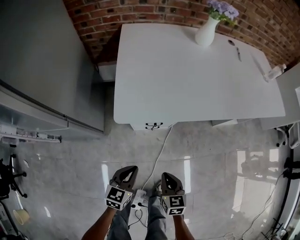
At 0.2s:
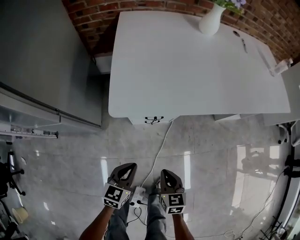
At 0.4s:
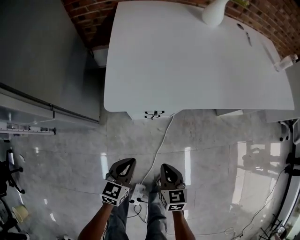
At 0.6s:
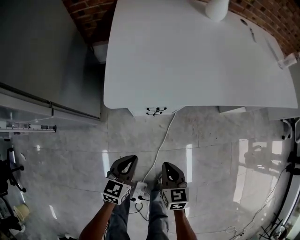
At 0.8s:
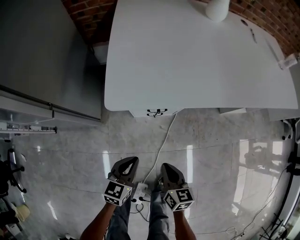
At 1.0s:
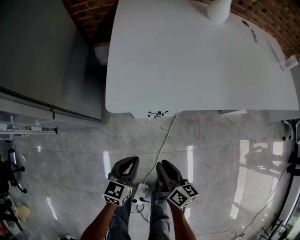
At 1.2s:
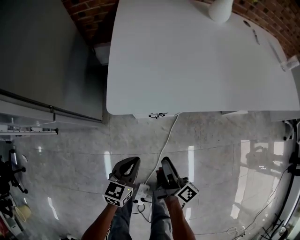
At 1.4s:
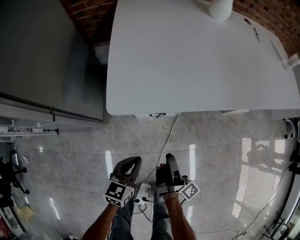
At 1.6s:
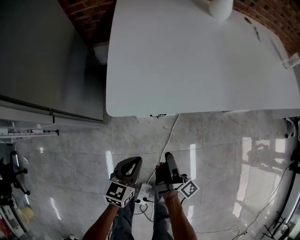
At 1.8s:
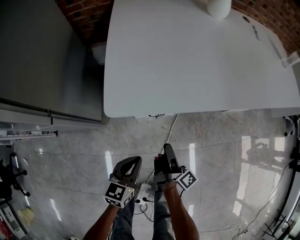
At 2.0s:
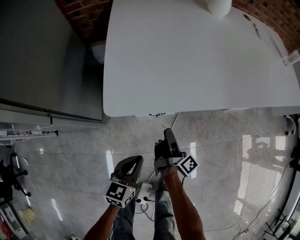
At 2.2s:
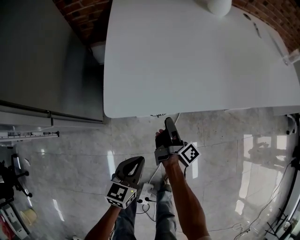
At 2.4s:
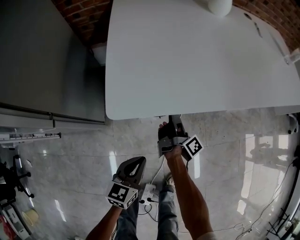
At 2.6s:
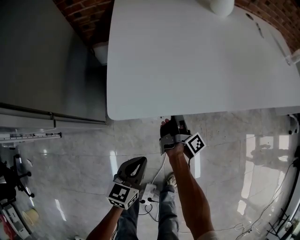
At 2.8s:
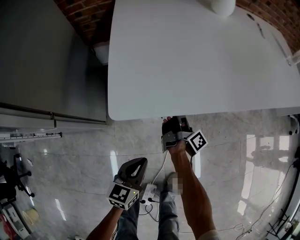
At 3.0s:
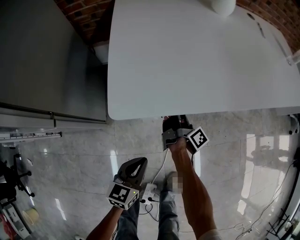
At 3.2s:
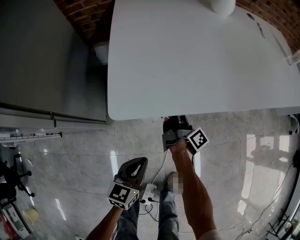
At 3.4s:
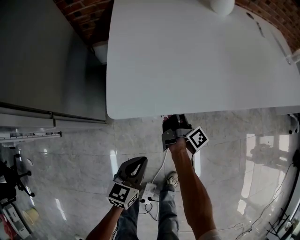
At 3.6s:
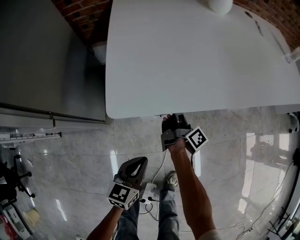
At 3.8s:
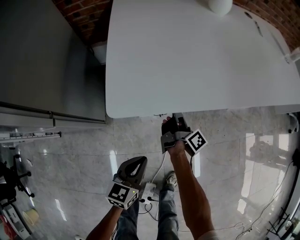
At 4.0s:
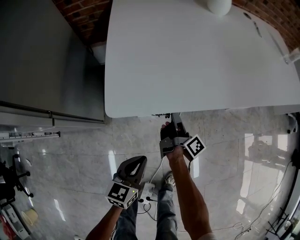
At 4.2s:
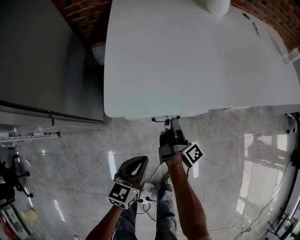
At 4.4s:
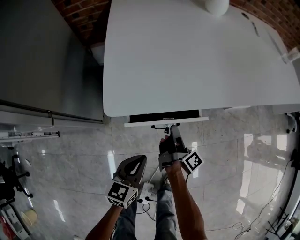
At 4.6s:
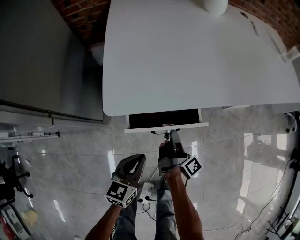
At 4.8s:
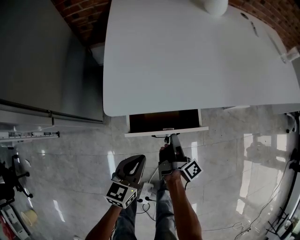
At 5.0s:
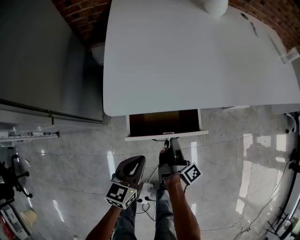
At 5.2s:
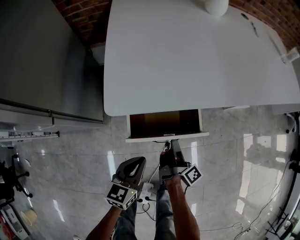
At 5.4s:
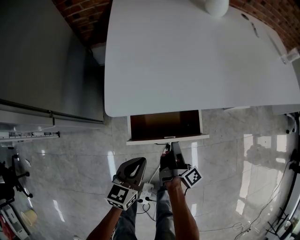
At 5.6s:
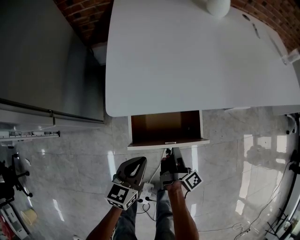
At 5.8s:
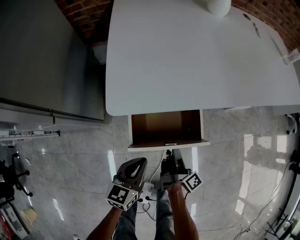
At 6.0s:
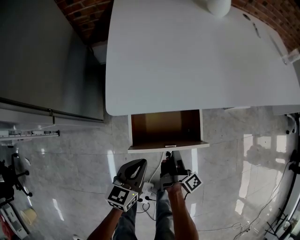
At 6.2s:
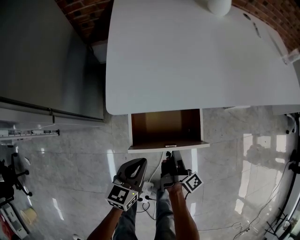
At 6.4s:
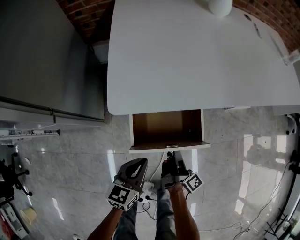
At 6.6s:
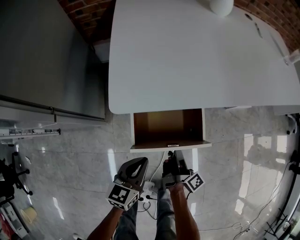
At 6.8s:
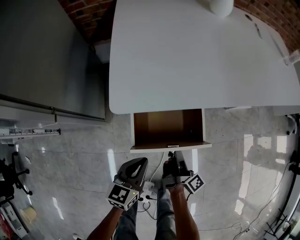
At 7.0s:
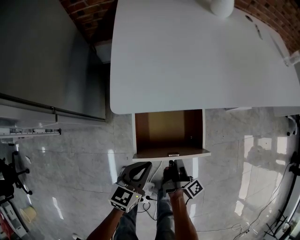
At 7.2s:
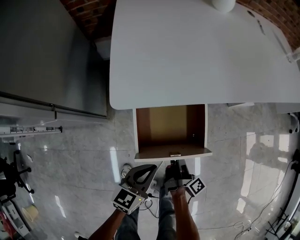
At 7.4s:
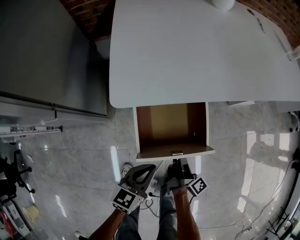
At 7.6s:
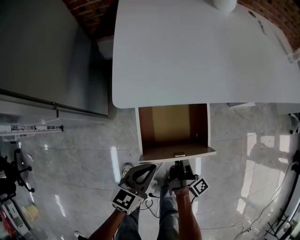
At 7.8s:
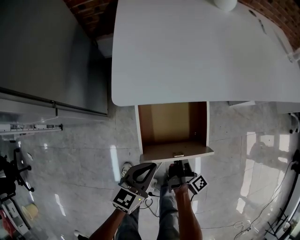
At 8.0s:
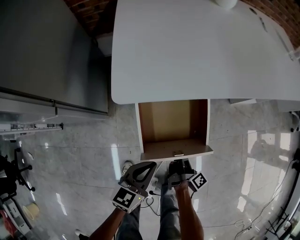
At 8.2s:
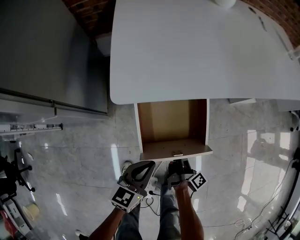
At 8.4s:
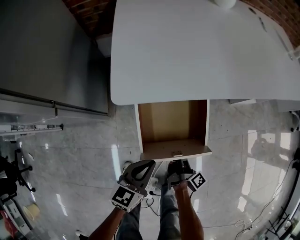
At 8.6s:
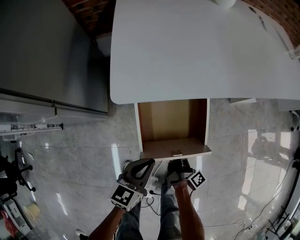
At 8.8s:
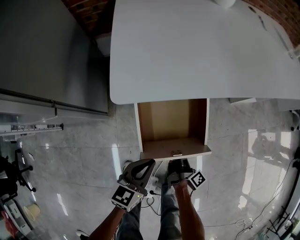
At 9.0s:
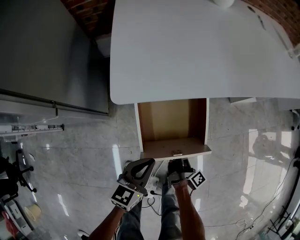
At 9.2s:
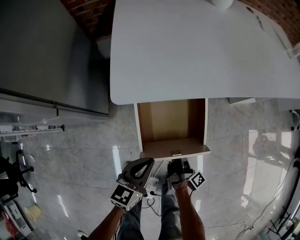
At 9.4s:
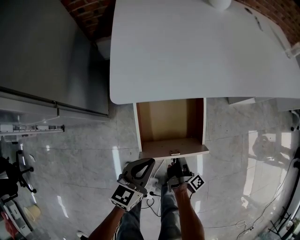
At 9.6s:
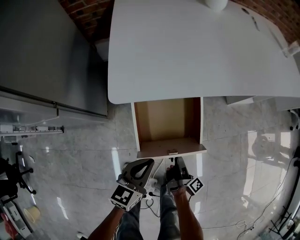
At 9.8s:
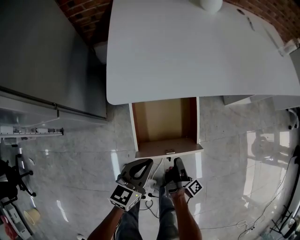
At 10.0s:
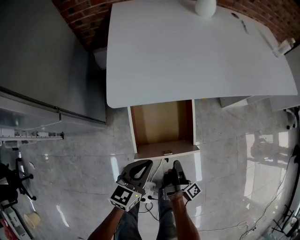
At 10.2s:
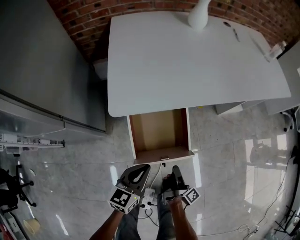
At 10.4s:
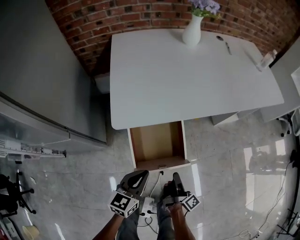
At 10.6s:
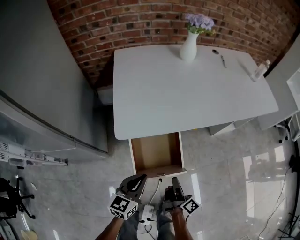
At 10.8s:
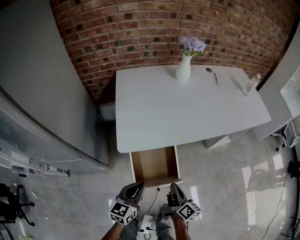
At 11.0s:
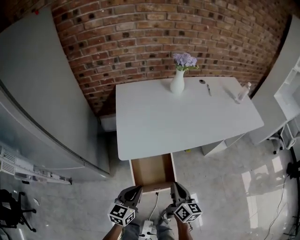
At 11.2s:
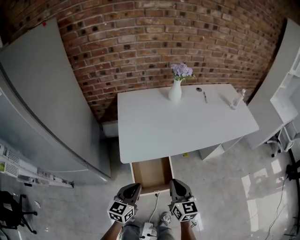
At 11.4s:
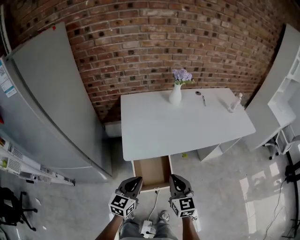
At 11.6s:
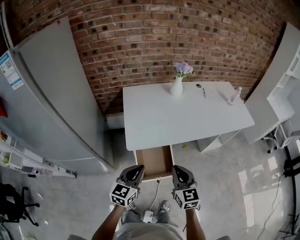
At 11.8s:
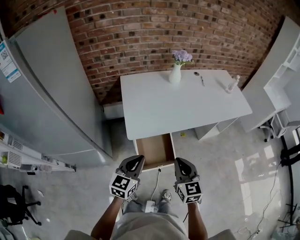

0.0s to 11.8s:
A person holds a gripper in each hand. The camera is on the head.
0.0s to 1.4s: The left gripper moves downward, approximately 5 cm. The right gripper goes roughly 5 cm forward, twists about 80 degrees clockwise, seen from behind, and opens.
1.4s to 3.0s: The right gripper shifts about 20 cm forward, and closes its fingers.
3.0s to 4.4s: The right gripper shifts about 10 cm backward.
4.4s to 6.0s: The right gripper heads backward, covering some 10 cm.
6.0s to 7.4s: The right gripper ends up some 5 cm from where it was.
7.4s to 8.8s: The grippers make only small movements.
8.8s to 10.4s: The right gripper is displaced upward by about 15 cm, and opens, then closes again. Meanwhile the left gripper heads upward, covering some 10 cm.
10.4s to 11.8s: The grippers both shift upward by about 30 cm. The right gripper rotates around the line of its fingers by about 90 degrees, counterclockwise from behind.

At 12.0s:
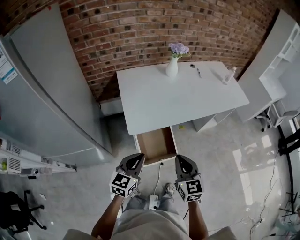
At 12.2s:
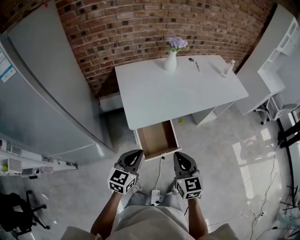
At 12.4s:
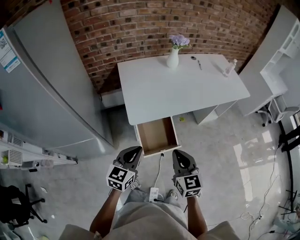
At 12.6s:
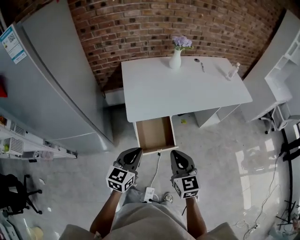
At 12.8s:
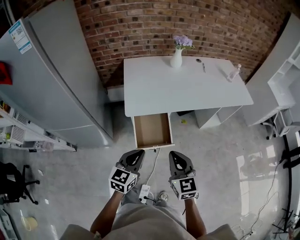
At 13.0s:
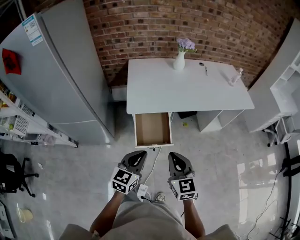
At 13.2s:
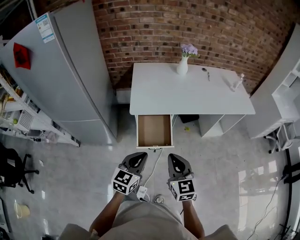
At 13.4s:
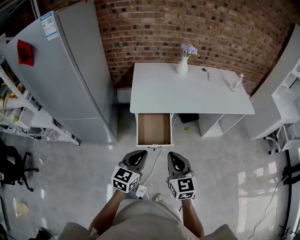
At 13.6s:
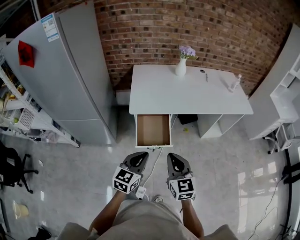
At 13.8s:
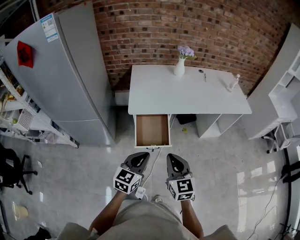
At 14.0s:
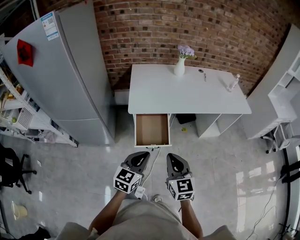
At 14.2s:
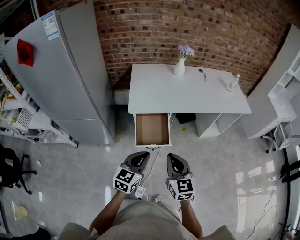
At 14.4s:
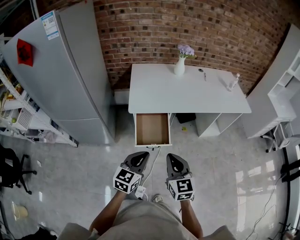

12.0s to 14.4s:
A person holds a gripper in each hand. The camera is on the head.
12.0s to 13.2s: The grippers both shift backward and to the right by roughly 15 cm.
13.2s to 14.4s: The grippers make only small movements.

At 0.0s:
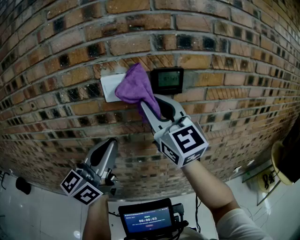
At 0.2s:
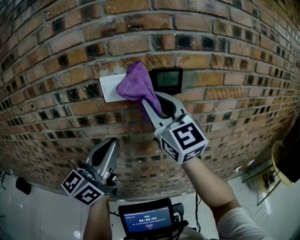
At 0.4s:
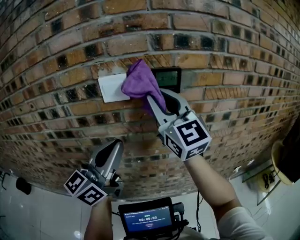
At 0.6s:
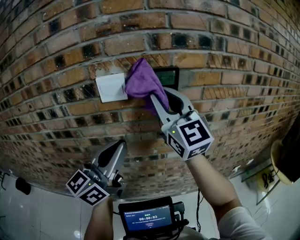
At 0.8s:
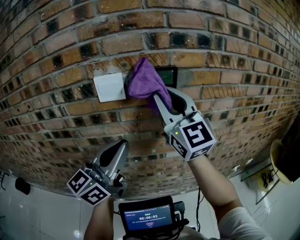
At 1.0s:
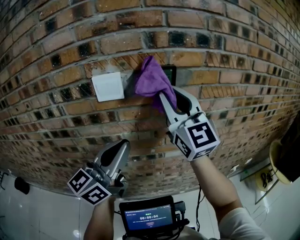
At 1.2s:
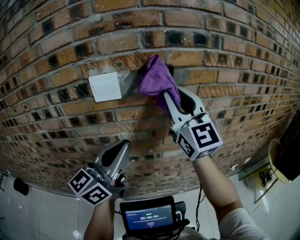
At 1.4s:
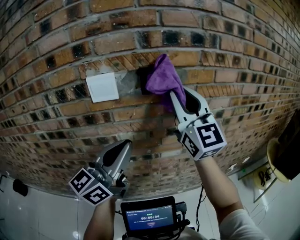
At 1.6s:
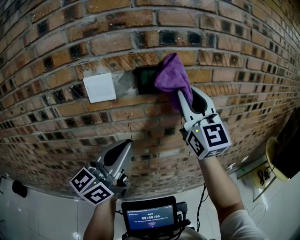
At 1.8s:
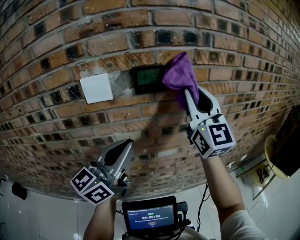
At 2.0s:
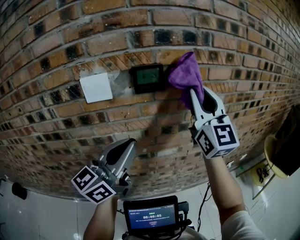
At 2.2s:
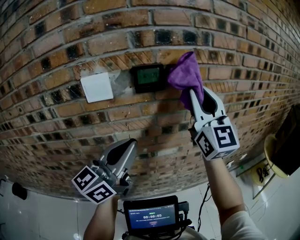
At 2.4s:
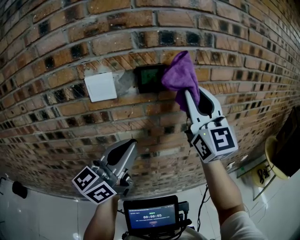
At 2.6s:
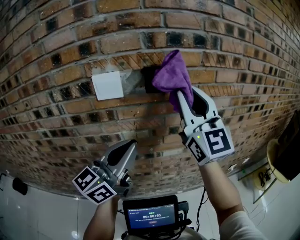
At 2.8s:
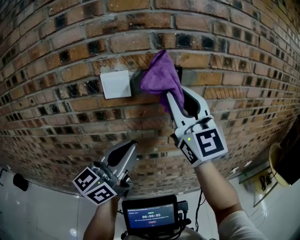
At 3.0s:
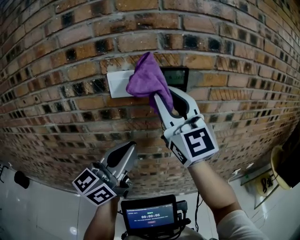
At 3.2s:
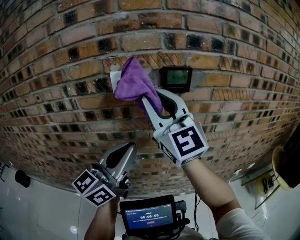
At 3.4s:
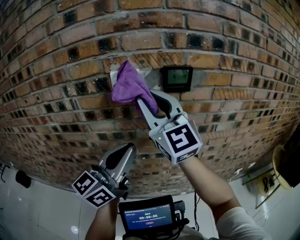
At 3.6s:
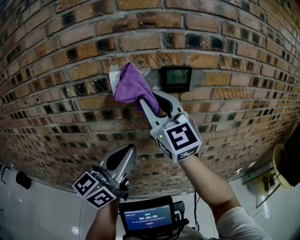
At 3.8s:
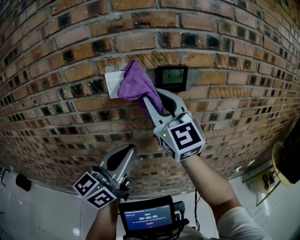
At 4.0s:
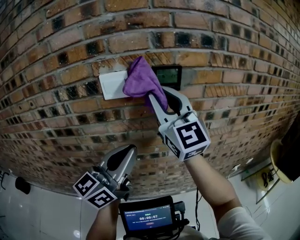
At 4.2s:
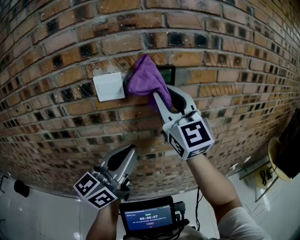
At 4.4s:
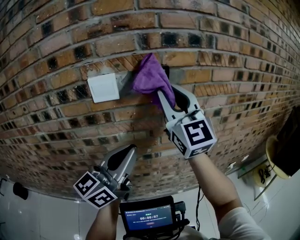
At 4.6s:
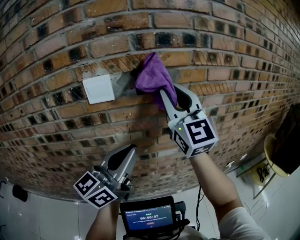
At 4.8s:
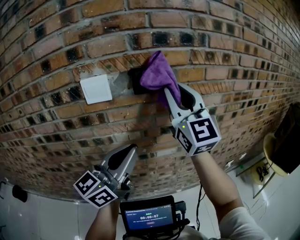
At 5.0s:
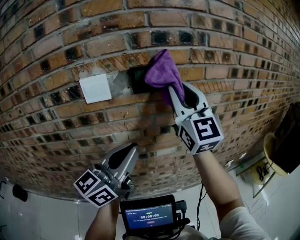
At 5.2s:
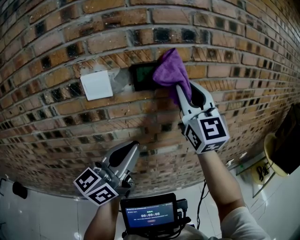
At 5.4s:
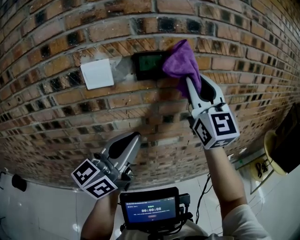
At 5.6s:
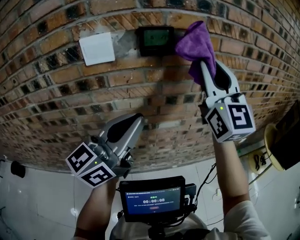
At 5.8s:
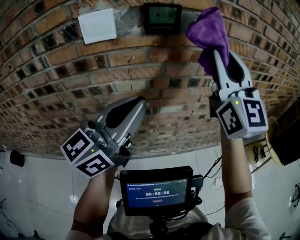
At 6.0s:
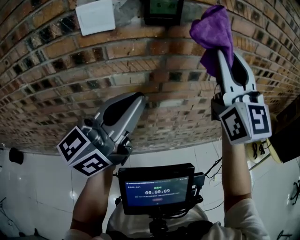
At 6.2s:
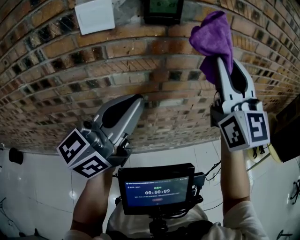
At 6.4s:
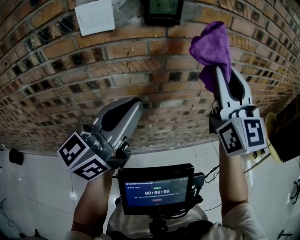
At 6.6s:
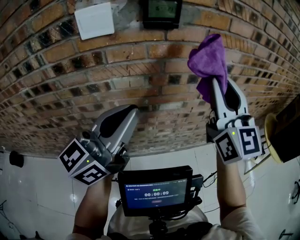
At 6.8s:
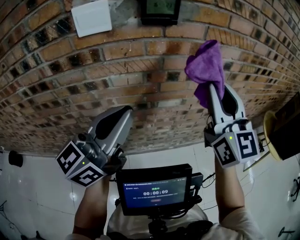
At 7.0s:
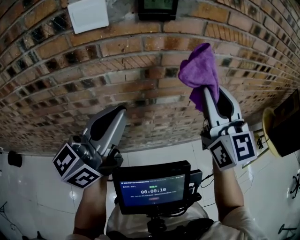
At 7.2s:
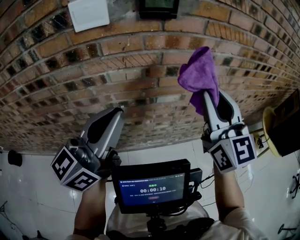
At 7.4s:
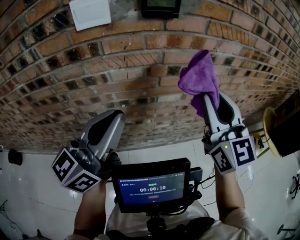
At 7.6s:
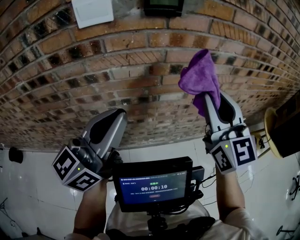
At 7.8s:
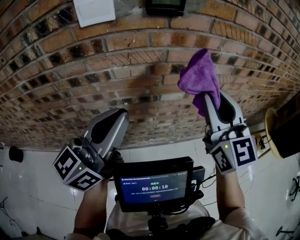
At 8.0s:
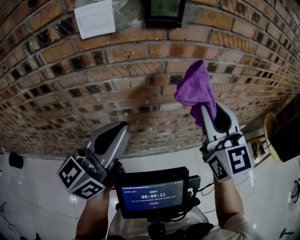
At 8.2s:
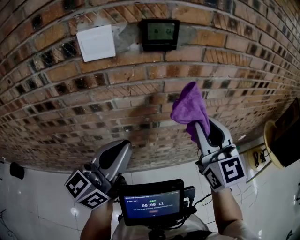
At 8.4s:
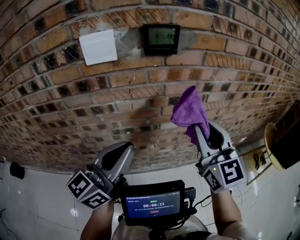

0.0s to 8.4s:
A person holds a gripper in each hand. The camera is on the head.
0.0s to 1.4s: The left gripper goes approximately 10 cm to the right. Meanwhile the right gripper goes roughly 10 cm to the right.
1.4s to 2.8s: The right gripper goes to the right and returns, about 10 cm each way.
2.8s to 4.2s: The right gripper reaches some 10 cm to the left, then returns.
4.2s to 5.6s: The right gripper moves to the right, roughly 15 cm.
5.6s to 7.0s: The right gripper shifts some 15 cm downward and backward, while the left gripper changes place by approximately 5 cm.
7.0s to 8.4s: There are only small adjustments of the grippers.

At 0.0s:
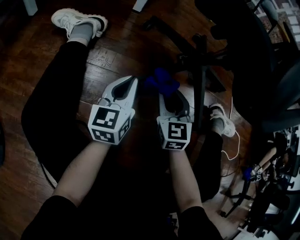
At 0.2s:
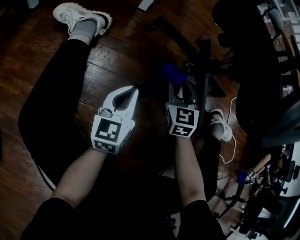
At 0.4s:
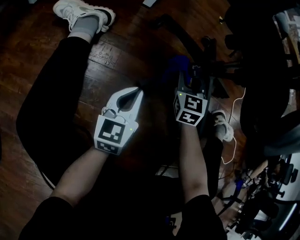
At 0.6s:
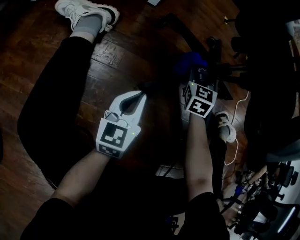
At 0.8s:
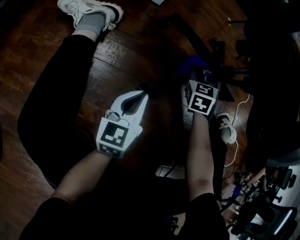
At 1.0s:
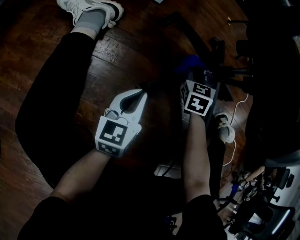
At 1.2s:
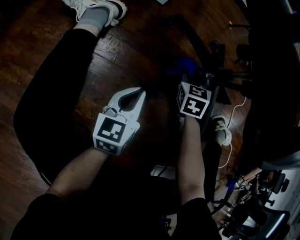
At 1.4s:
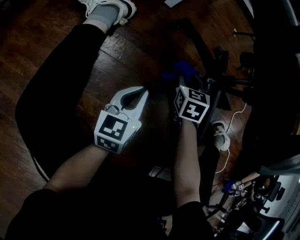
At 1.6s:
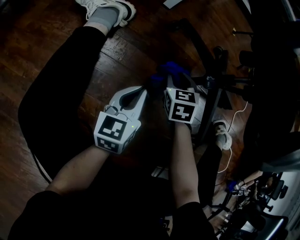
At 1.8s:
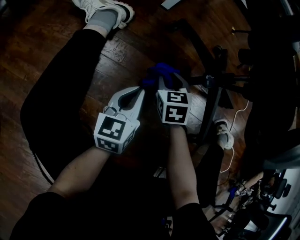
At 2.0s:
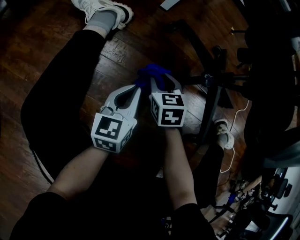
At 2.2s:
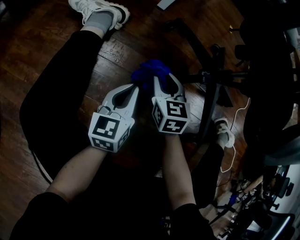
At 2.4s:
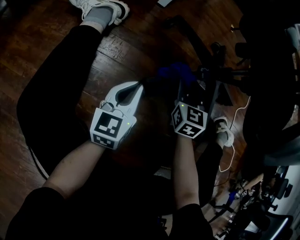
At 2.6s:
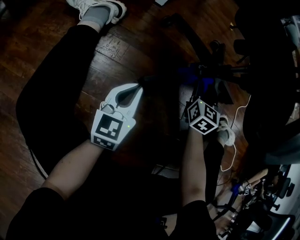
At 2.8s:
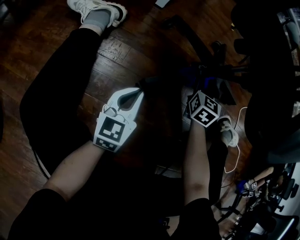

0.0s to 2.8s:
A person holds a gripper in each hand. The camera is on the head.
0.0s to 1.4s: The right gripper shifts approximately 15 cm forward and downward.
1.4s to 2.8s: The right gripper is displaced to the right by roughly 10 cm, and swivels approximately 20 degrees.
